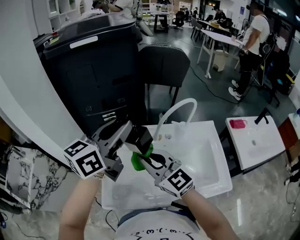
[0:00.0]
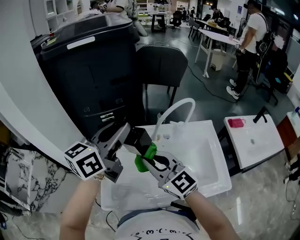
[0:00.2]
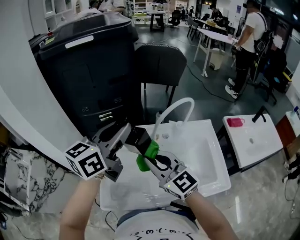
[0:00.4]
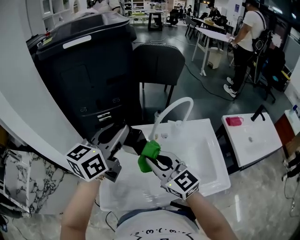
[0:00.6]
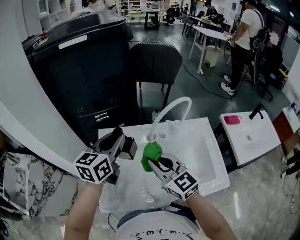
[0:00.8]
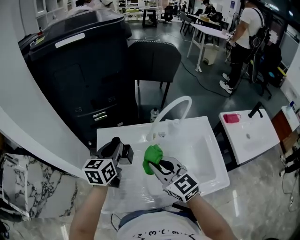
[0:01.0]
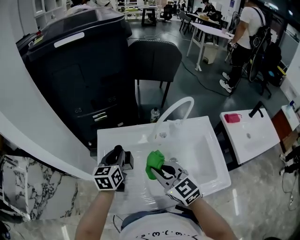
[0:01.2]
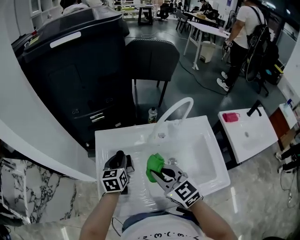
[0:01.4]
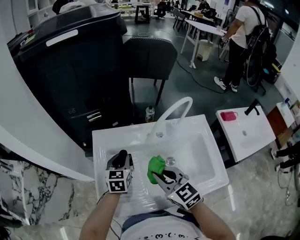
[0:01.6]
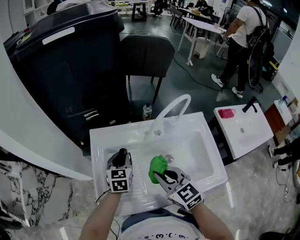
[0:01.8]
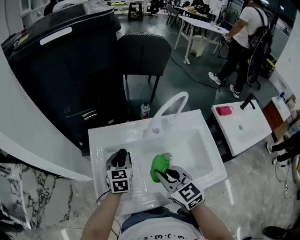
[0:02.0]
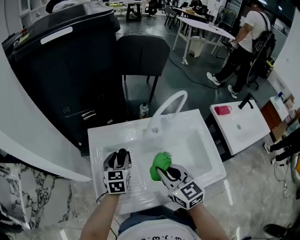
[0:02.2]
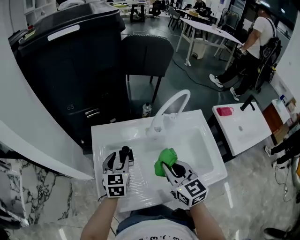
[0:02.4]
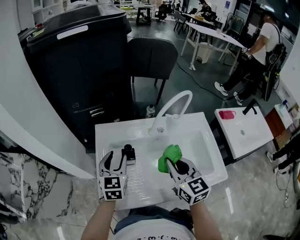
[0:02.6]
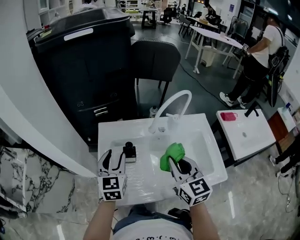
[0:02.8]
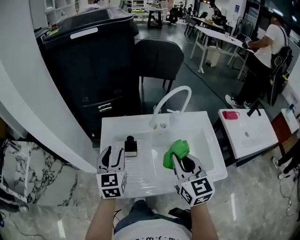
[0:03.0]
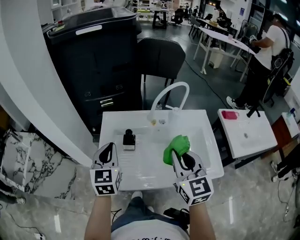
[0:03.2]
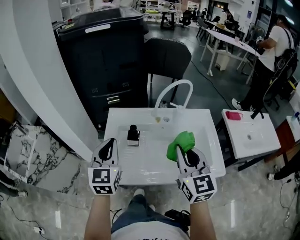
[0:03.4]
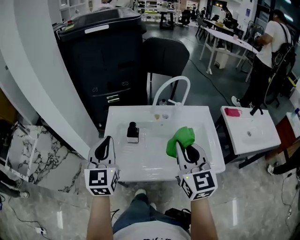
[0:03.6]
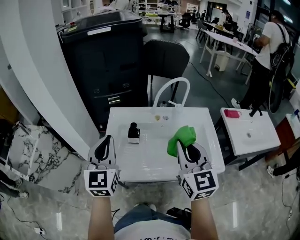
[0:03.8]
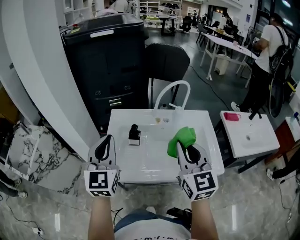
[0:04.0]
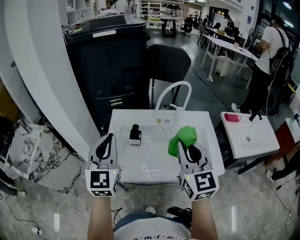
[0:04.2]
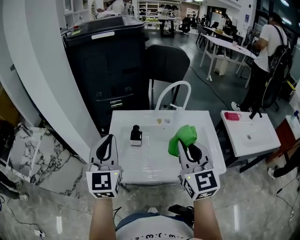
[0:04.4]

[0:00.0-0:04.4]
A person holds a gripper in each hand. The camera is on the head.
0.0 to 1.4 s: The left gripper goes approximately 30 cm downward, and points its fingers about 30 degrees further downward. The right gripper moves downward, some 10 cm, and turns by about 20 degrees.
1.4 to 3.0 s: The left gripper goes roughly 15 cm upward and backward, and swivels roughly 20 degrees. Meanwhile the right gripper shifts some 10 cm upward, to the right and backward, and swivels some 20 degrees.
3.0 to 4.4 s: The left gripper heads upward and backward, covering some 15 cm, and closes its fingers. Meanwhile the right gripper is displaced upward and backward by some 10 cm.

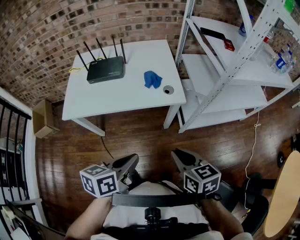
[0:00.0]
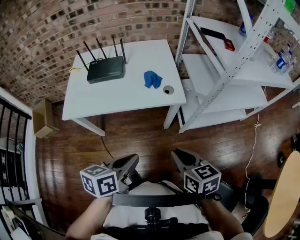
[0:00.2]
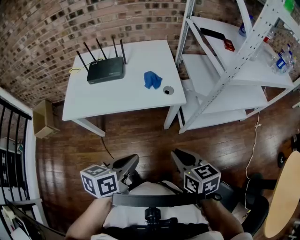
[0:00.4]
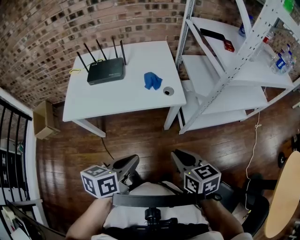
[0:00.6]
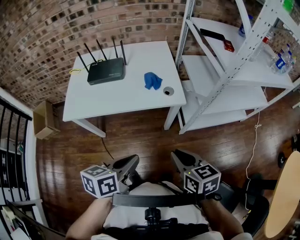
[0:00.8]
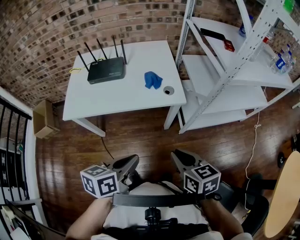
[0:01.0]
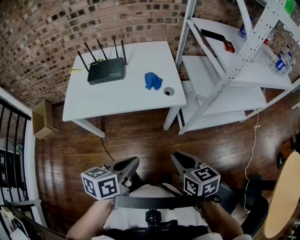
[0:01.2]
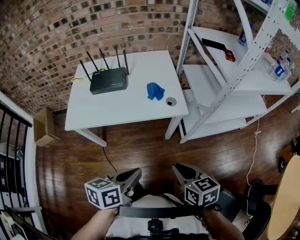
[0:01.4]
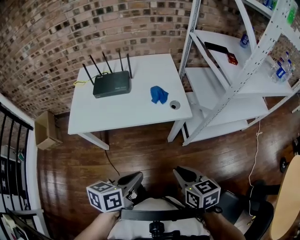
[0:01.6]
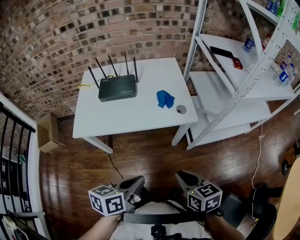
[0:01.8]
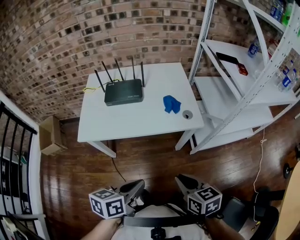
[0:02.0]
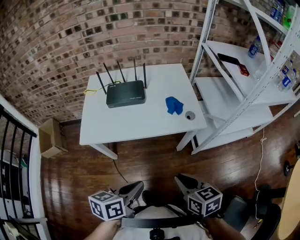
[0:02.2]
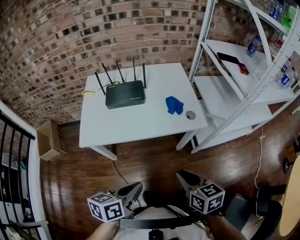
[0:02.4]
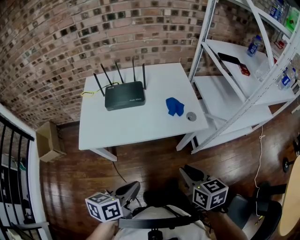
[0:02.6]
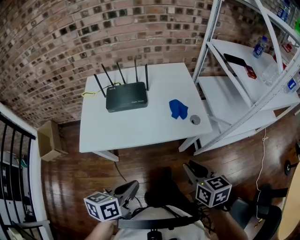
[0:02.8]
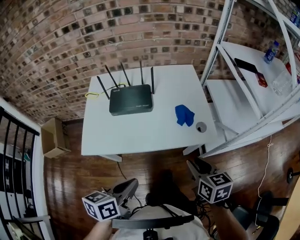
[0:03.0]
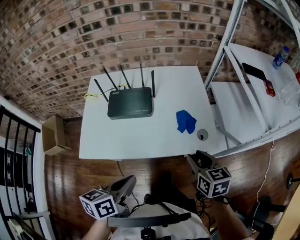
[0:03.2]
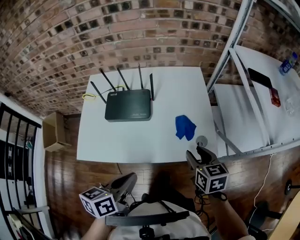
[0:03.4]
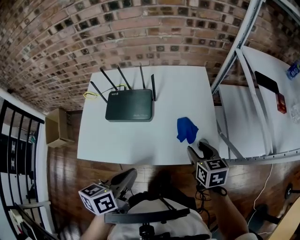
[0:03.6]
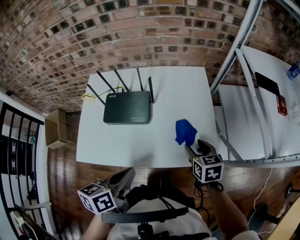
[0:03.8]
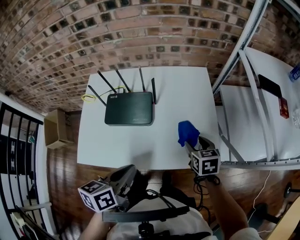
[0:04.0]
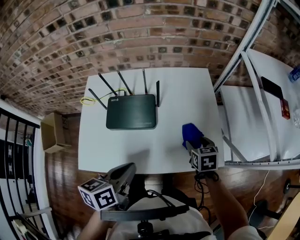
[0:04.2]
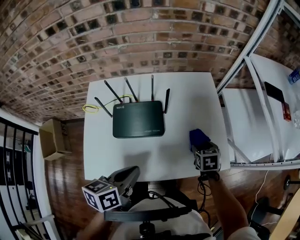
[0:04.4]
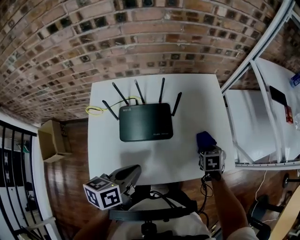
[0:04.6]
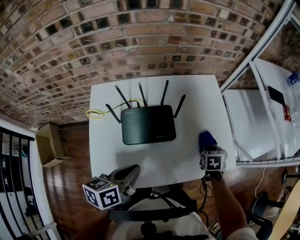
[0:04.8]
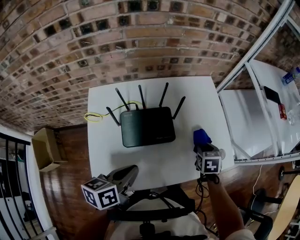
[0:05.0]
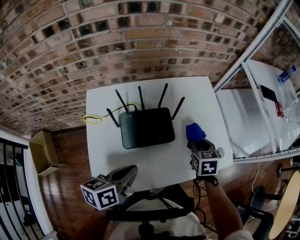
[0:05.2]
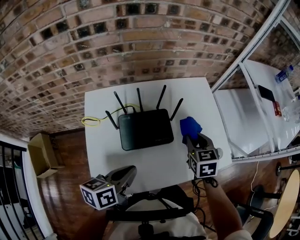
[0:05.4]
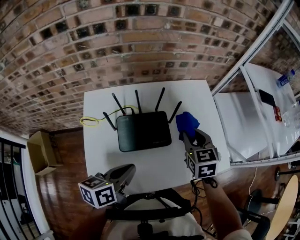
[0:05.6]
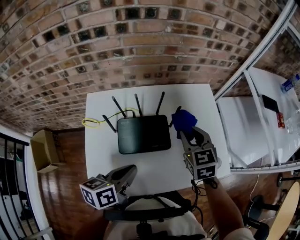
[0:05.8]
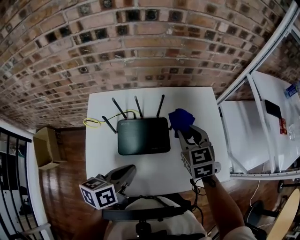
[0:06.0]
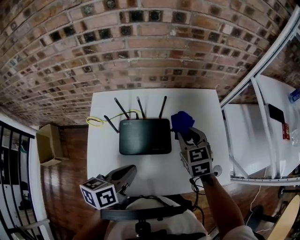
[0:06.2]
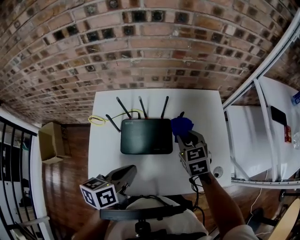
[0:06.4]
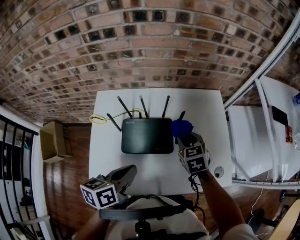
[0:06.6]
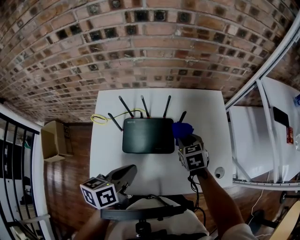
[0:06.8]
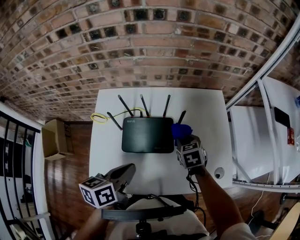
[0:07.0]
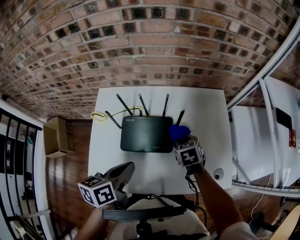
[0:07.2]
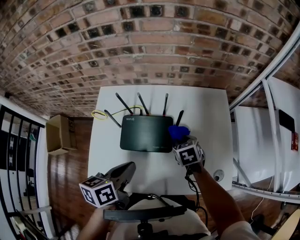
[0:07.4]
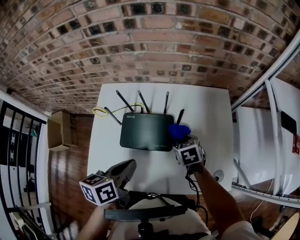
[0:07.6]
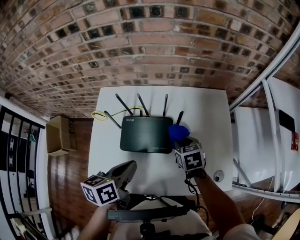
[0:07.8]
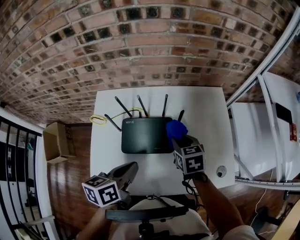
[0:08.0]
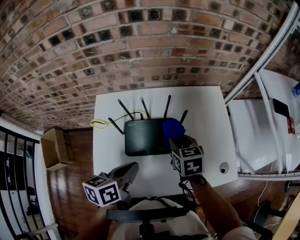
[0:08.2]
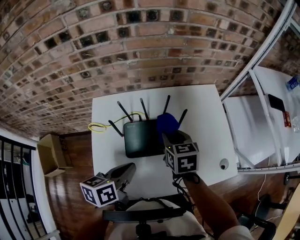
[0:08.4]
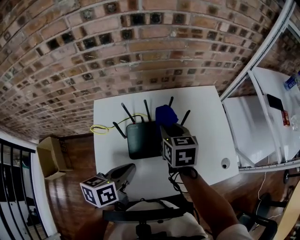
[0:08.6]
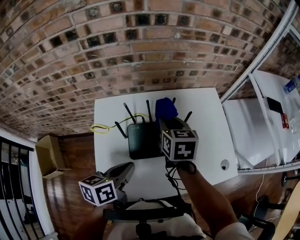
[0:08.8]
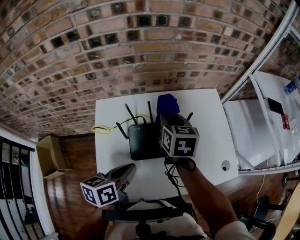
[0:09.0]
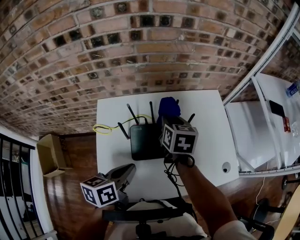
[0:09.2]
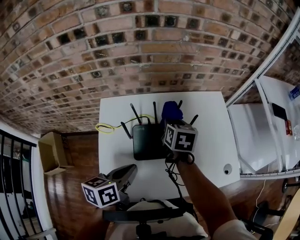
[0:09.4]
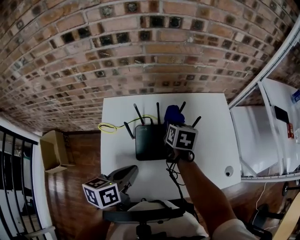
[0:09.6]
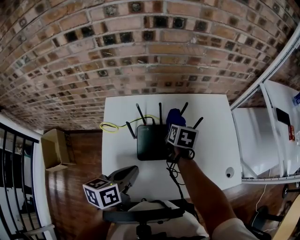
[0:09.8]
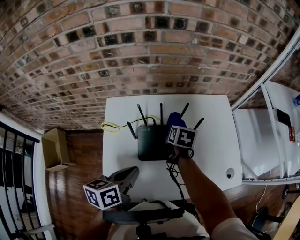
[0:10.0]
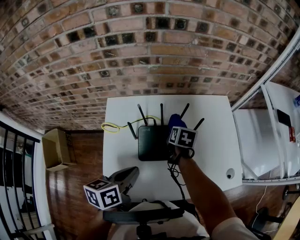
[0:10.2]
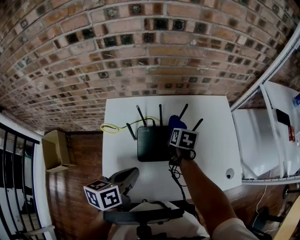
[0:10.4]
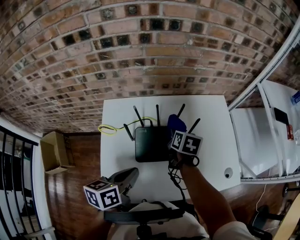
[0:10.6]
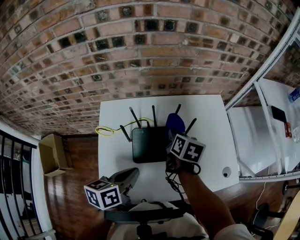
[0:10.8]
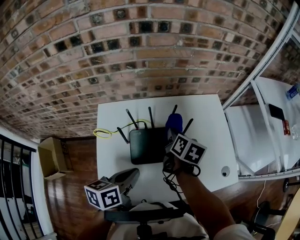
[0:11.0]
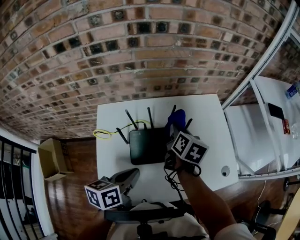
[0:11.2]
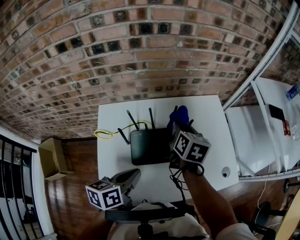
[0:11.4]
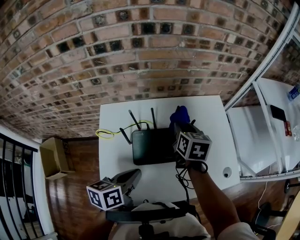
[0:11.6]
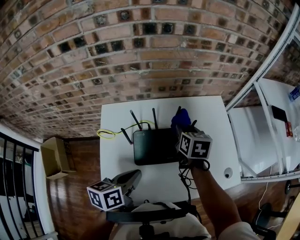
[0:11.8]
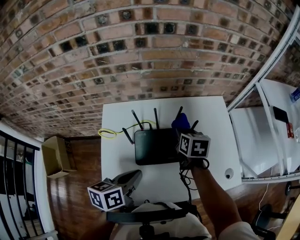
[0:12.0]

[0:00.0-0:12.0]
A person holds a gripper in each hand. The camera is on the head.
0.0 to 1.6 s: There are only small adjustments of the grippers.
1.6 to 3.0 s: The left gripper heads to the left and forward, covering roughly 20 cm. Meanwhile the right gripper goes approximately 20 cm forward and to the left.
3.0 to 4.4 s: The right gripper goes some 35 cm forward and downward, turns by some 30 degrees, and opens up. The left gripper heads forward, covering approximately 25 cm.
4.4 to 6.0 s: The right gripper moves to the left and upward, about 25 cm, turns by roughly 30 degrees, and closes its fingers. Meanwhile the left gripper travels to the left and forward by about 10 cm.
6.0 to 7.6 s: The right gripper goes approximately 15 cm downward, and turns by approximately 30 degrees.
7.6 to 9.0 s: The left gripper moves to the left, some 10 cm. The right gripper heads upward and to the left, covering some 25 cm, and rotates some 40 degrees.
9.0 to 10.4 s: The right gripper is displaced downward by approximately 15 cm, and rotates some 20 degrees.
10.4 to 12.0 s: The right gripper shifts approximately 5 cm upward.

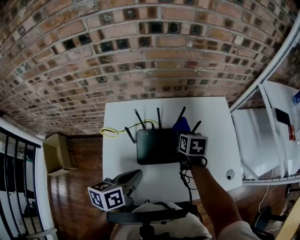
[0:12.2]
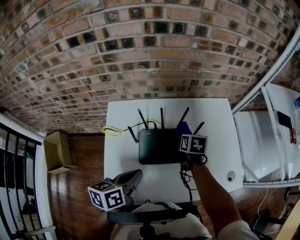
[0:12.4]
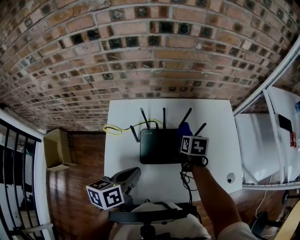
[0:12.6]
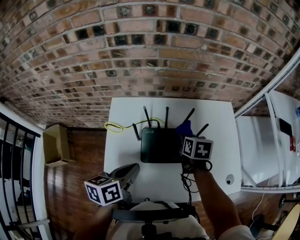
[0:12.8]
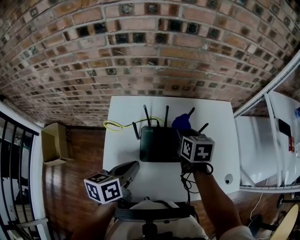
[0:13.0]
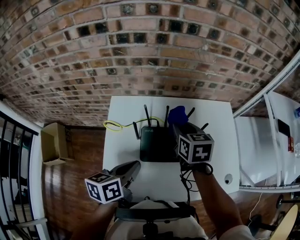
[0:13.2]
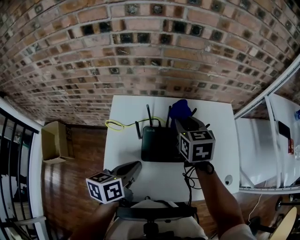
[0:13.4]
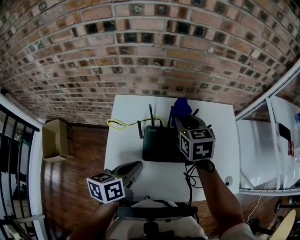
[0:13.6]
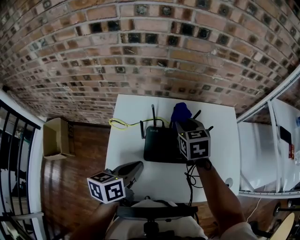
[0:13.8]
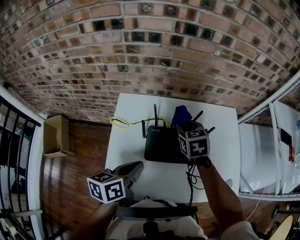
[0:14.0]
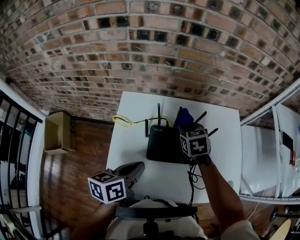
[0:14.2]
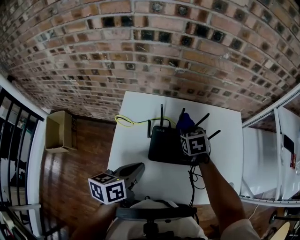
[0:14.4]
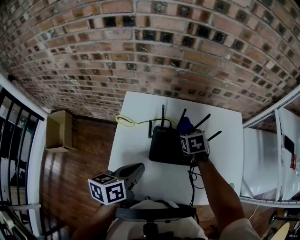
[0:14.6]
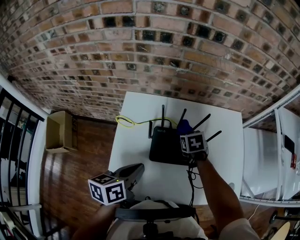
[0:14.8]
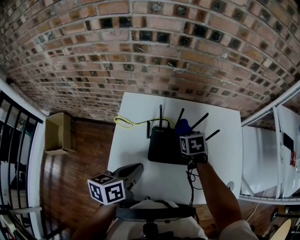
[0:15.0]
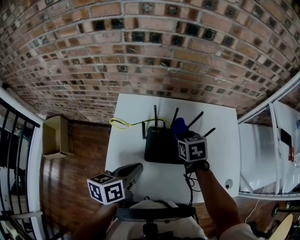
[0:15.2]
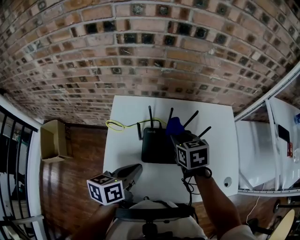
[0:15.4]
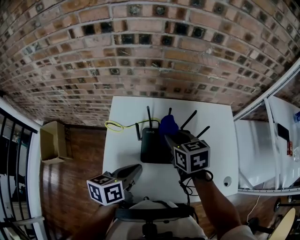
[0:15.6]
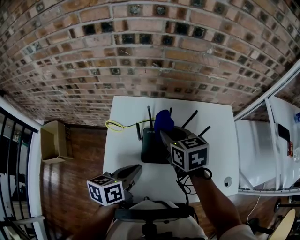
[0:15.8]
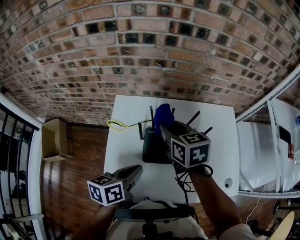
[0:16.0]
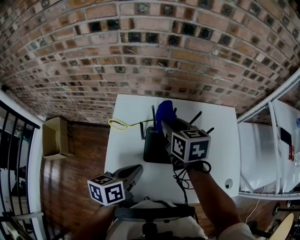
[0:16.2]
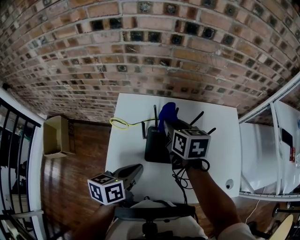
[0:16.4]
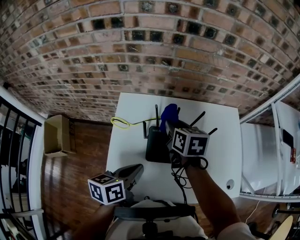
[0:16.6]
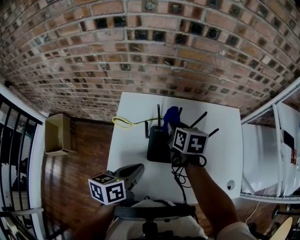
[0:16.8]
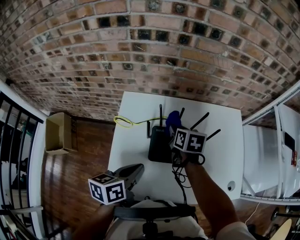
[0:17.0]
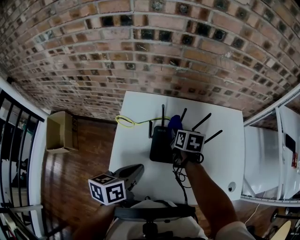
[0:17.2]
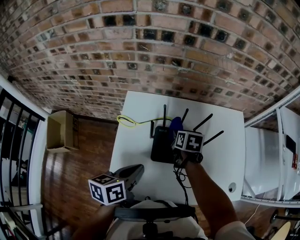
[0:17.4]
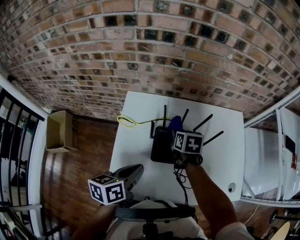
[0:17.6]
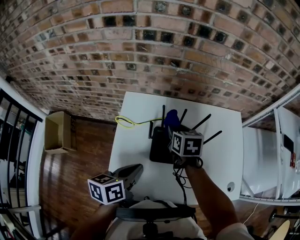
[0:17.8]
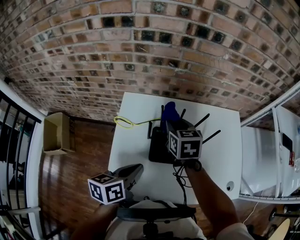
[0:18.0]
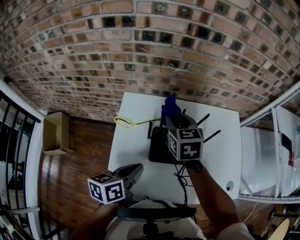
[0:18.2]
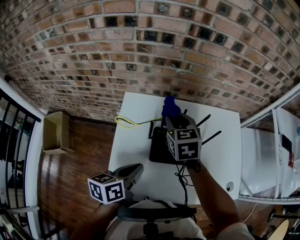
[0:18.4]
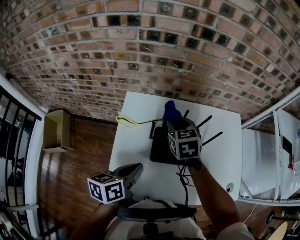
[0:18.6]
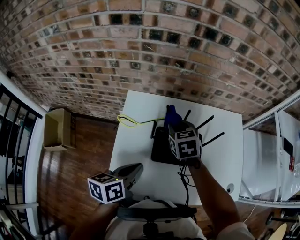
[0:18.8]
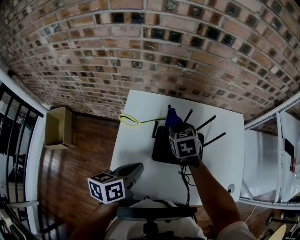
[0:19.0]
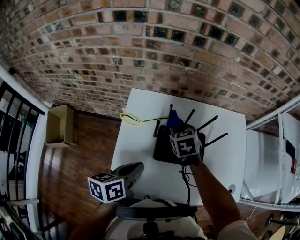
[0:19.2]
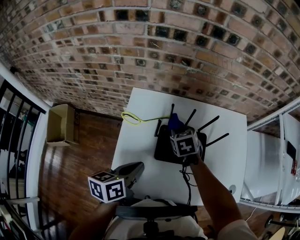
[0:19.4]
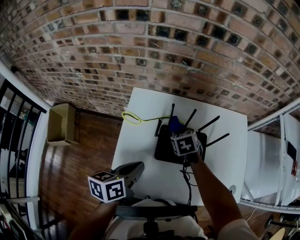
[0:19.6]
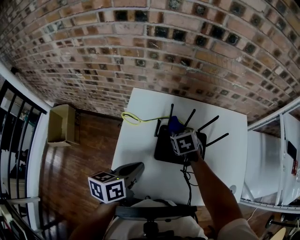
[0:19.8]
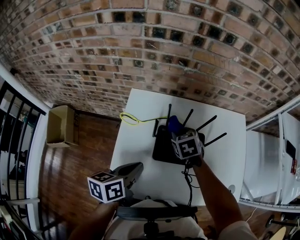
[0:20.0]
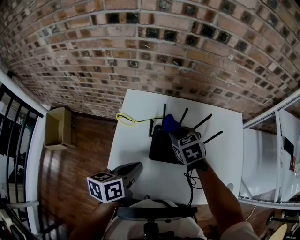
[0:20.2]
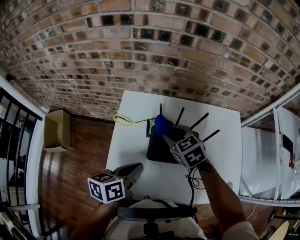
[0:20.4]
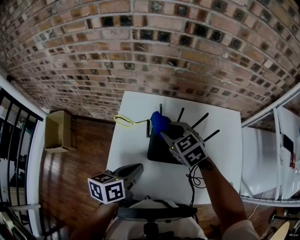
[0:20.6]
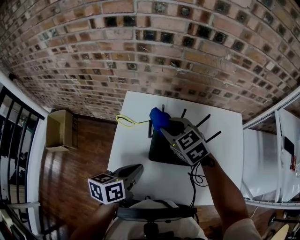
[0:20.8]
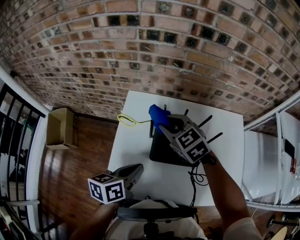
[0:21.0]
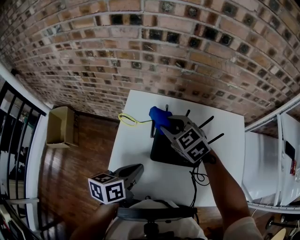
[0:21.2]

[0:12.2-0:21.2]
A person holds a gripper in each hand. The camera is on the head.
12.2 to 13.8 s: The right gripper heads upward and to the left, covering about 15 cm, and swivels roughly 30 degrees.
13.8 to 15.2 s: The right gripper travels downward by about 10 cm.
15.2 to 16.6 s: The right gripper shifts roughly 10 cm upward and to the left, and swivels about 20 degrees.
16.6 to 18.2 s: The right gripper reaches roughly 10 cm downward, then returns, and swivels about 20 degrees.
18.2 to 19.8 s: The right gripper shifts roughly 15 cm downward, and swivels approximately 30 degrees.
19.8 to 21.2 s: The right gripper shifts about 15 cm upward and to the left, and swivels roughly 40 degrees.
